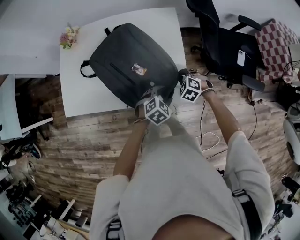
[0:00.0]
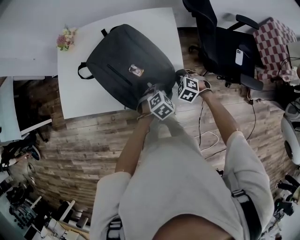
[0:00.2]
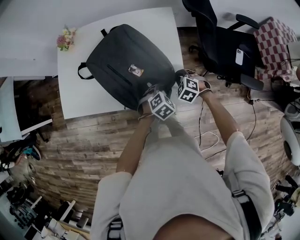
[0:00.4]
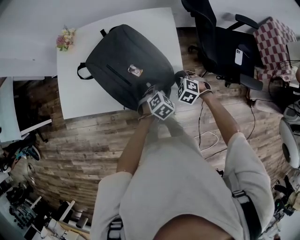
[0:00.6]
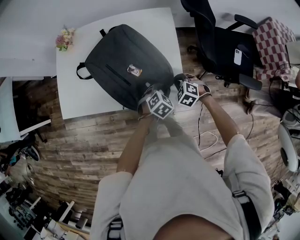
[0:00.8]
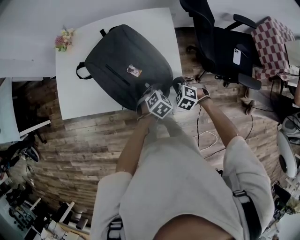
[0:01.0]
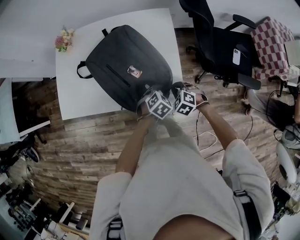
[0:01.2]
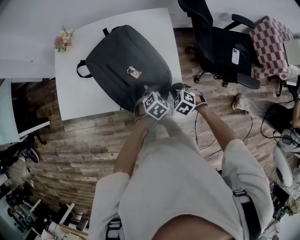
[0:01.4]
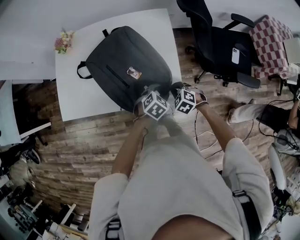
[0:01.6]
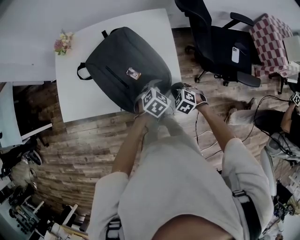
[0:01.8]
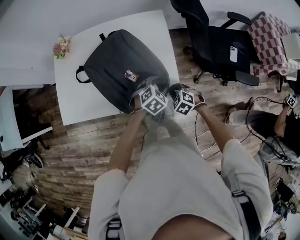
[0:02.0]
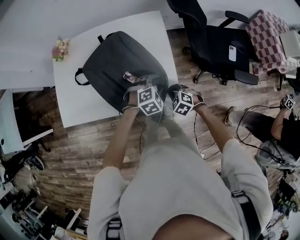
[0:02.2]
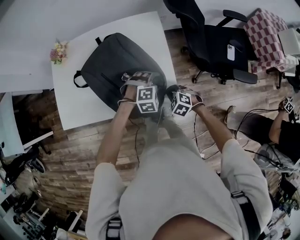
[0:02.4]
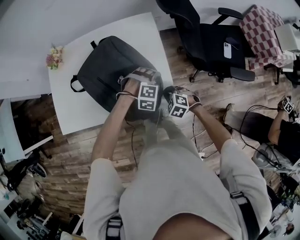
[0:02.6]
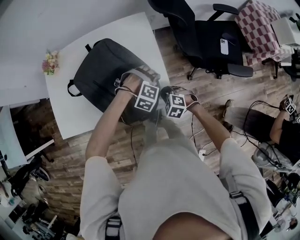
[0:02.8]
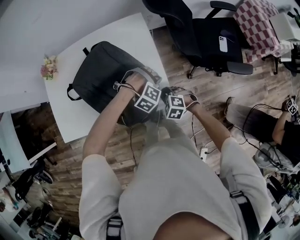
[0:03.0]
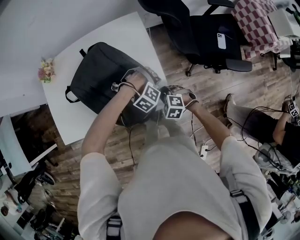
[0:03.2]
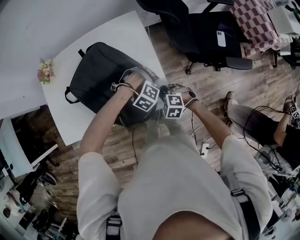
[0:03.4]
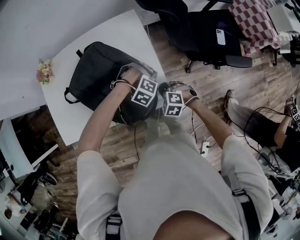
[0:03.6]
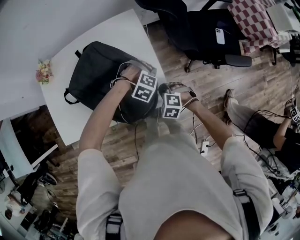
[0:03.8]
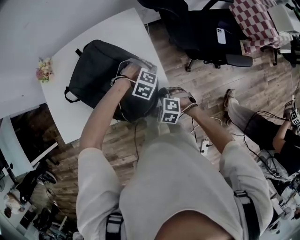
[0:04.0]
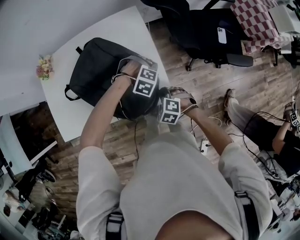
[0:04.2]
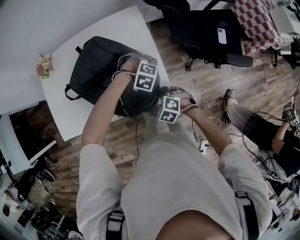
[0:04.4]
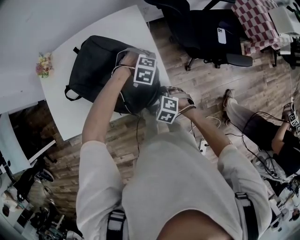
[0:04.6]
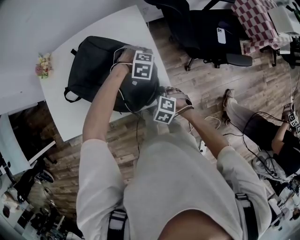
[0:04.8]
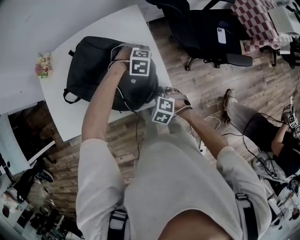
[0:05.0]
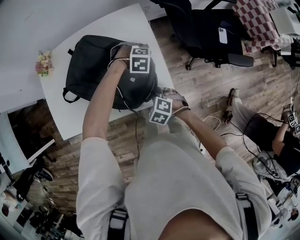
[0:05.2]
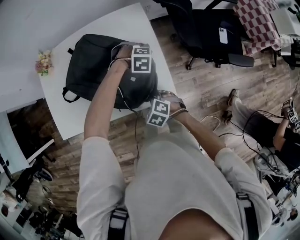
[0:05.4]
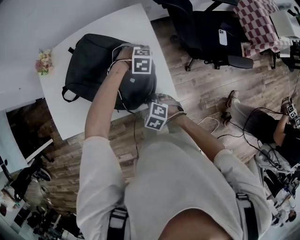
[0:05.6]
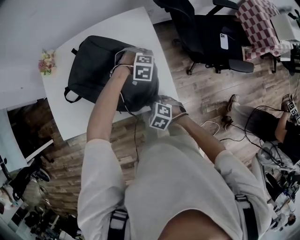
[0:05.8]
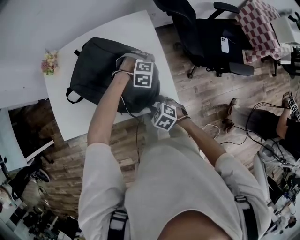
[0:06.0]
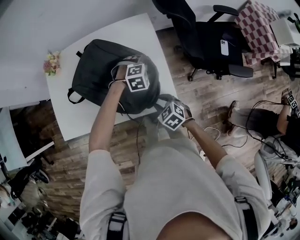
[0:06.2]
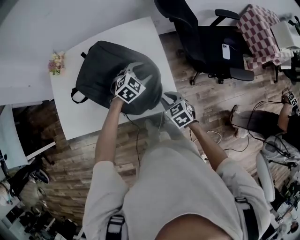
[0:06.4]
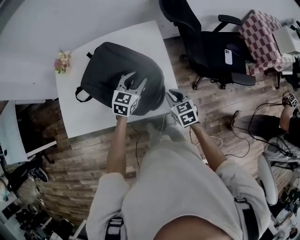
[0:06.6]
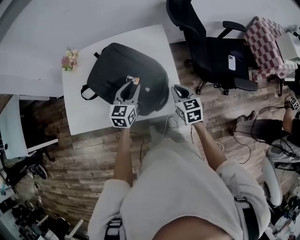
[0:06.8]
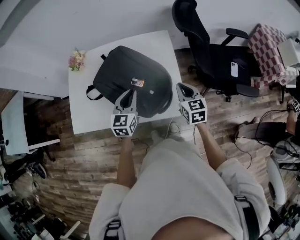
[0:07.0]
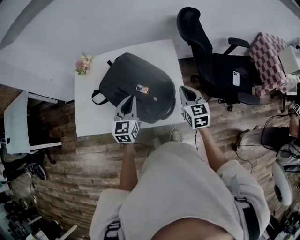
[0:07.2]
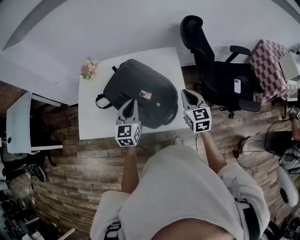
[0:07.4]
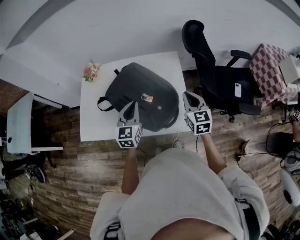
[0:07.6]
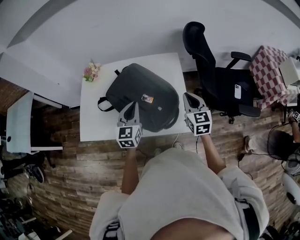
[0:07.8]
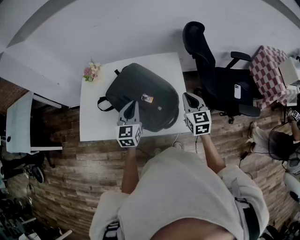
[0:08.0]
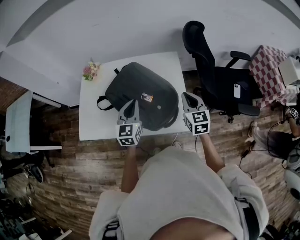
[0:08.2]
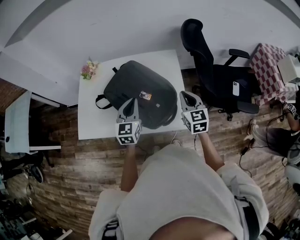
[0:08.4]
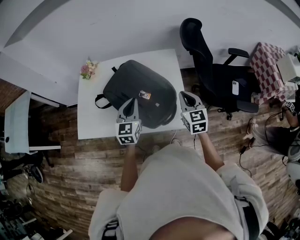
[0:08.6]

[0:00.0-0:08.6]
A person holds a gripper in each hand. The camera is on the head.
0:00.0 to 0:01.4: The right gripper goes about 5 cm backward; the left gripper closes up.
0:01.4 to 0:02.8: The left gripper travels forward by roughly 5 cm, twists approximately 80 degrees clockwise, seen from behind, and opens its fingers.
0:02.8 to 0:04.4: The grippers move only a little.
0:04.4 to 0:05.8: The right gripper ends up roughly 10 cm from where it was, while the left gripper moves roughly 5 cm.
0:05.8 to 0:07.2: The right gripper travels upward by some 20 cm, angles its fingers upward, by roughly 40 degrees, and opens and closes again. The left gripper moves about 30 cm, tips its fingers upward by roughly 60 degrees, and closes its fingers.
0:07.2 to 0:08.6: The grippers make only small movements.

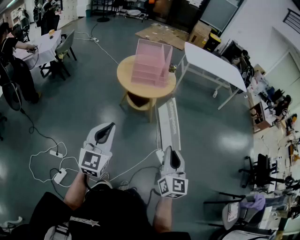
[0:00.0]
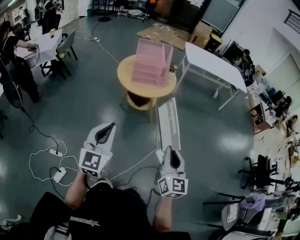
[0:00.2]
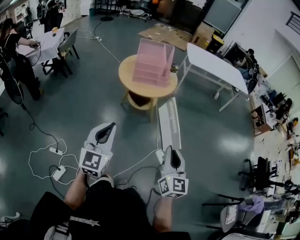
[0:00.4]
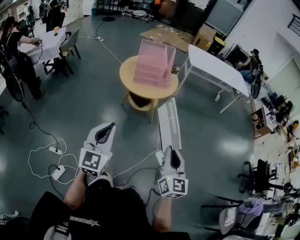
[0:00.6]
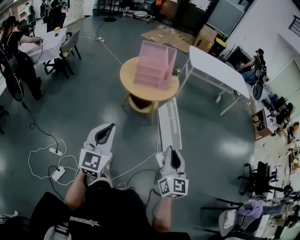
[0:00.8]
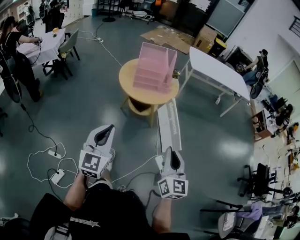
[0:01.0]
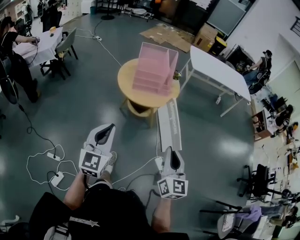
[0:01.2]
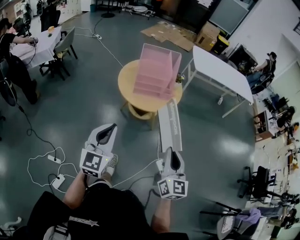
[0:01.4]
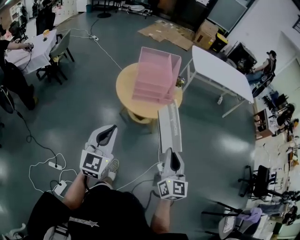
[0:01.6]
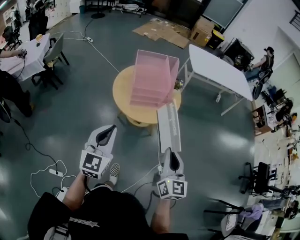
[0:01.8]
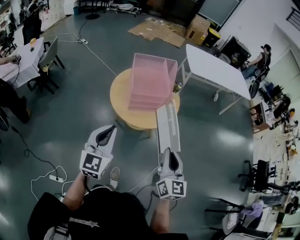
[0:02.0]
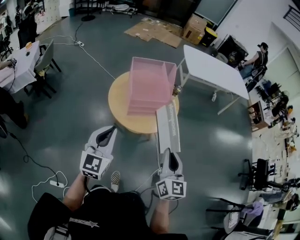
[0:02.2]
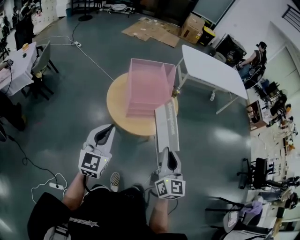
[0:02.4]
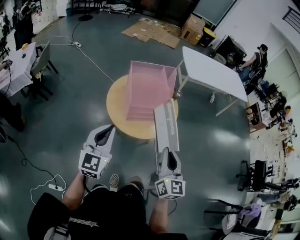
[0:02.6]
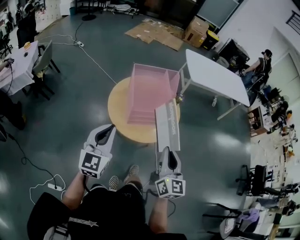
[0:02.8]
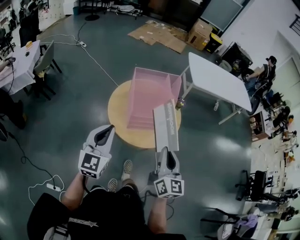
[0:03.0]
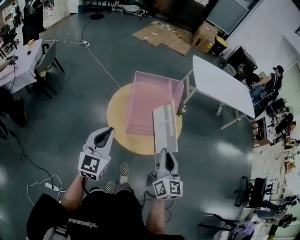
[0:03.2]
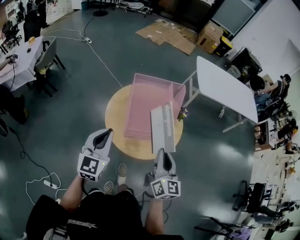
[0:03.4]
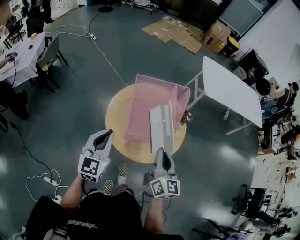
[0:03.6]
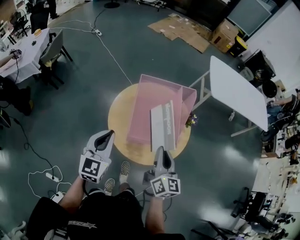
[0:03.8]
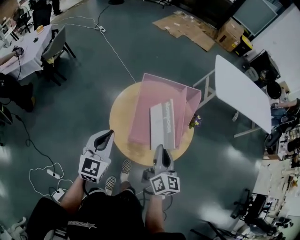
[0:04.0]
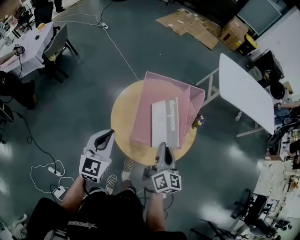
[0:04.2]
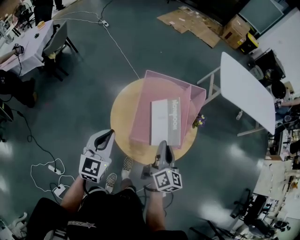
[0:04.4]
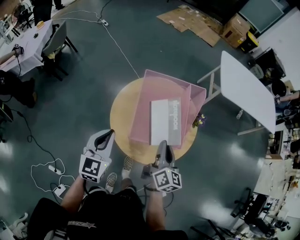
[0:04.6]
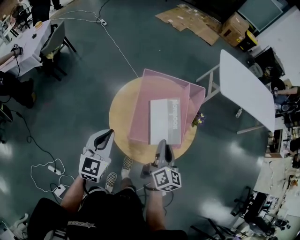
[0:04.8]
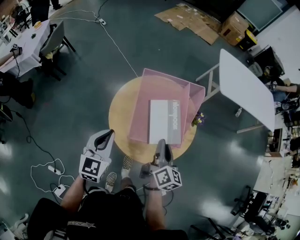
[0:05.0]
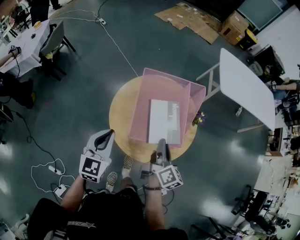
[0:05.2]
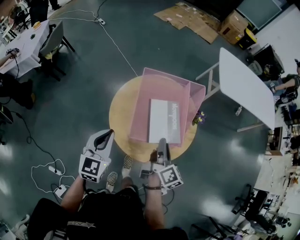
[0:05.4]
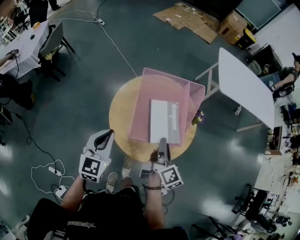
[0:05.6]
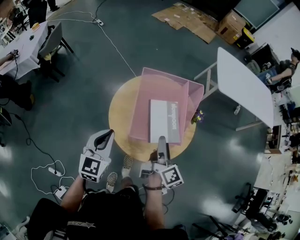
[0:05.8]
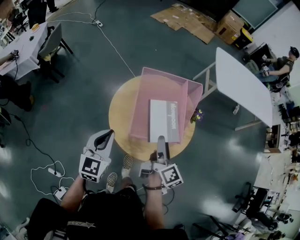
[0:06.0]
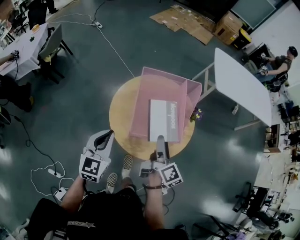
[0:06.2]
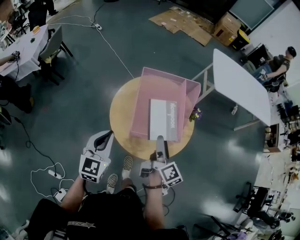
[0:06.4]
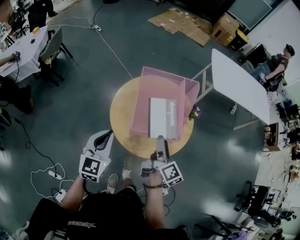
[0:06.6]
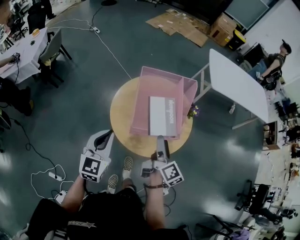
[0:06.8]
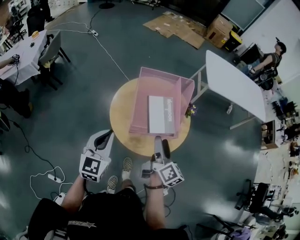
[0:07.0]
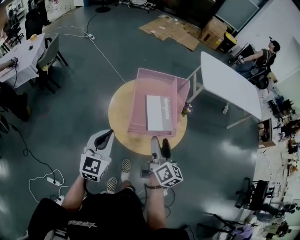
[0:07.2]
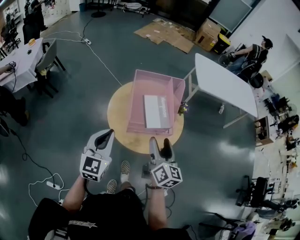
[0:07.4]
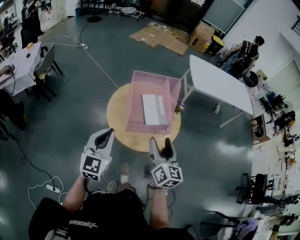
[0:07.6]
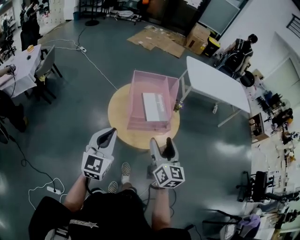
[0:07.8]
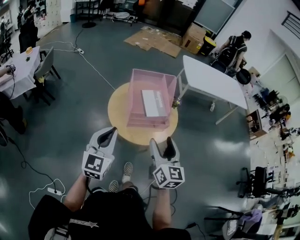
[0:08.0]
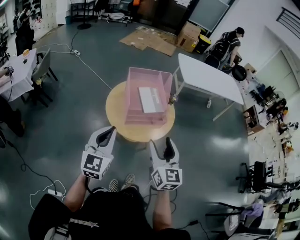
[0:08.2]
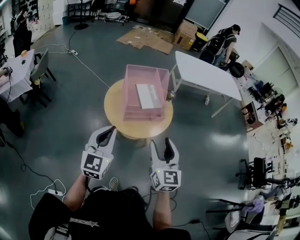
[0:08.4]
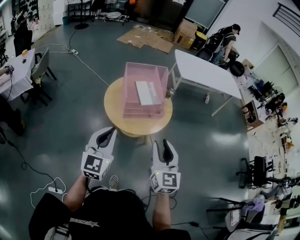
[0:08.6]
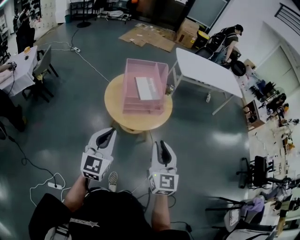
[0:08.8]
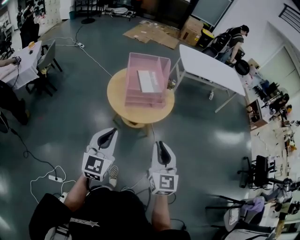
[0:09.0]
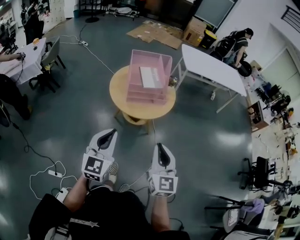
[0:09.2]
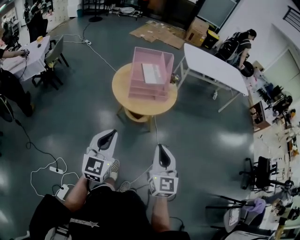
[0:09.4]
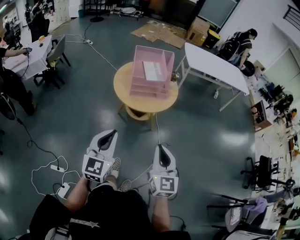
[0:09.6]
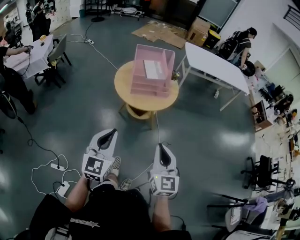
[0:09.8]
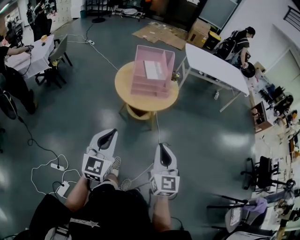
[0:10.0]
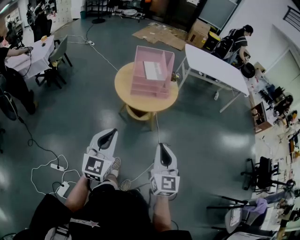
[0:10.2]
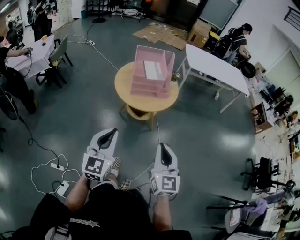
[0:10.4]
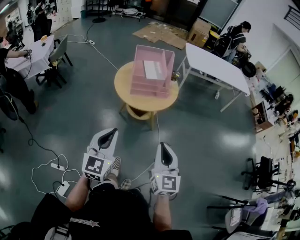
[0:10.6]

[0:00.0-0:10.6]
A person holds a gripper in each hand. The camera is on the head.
0:00.0 to 0:01.6: The two grippers go about 20 cm forward.
0:01.6 to 0:03.0: The grippers both shift forward by approximately 20 cm.
0:03.0 to 0:04.6: Both grippers travel together forward and downward, about 20 cm. The right gripper rotates approximately 20 degrees.
0:04.6 to 0:06.0: The right gripper changes its angle by approximately 30 degrees, and opens up.
0:06.0 to 0:07.6: Both grippers travel together backward and upward, about 15 cm. The right gripper rotates around the line of its fingers by approximately 40 degrees, counterclockwise from behind.
0:07.6 to 0:09.0: Both grippers travel together backward, about 20 cm. The right gripper rotates some 20 degrees, and closes its fingers.
0:09.0 to 0:10.6: The two grippers go some 10 cm backward.

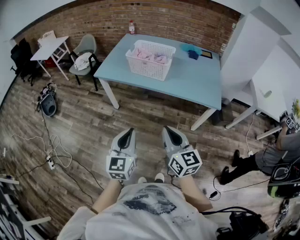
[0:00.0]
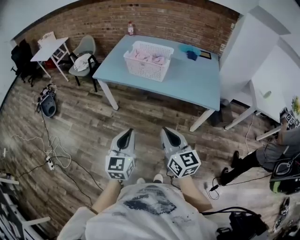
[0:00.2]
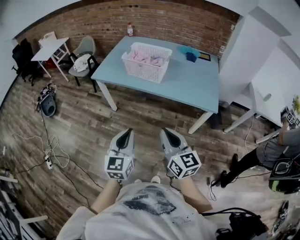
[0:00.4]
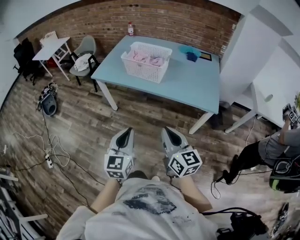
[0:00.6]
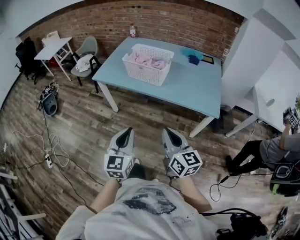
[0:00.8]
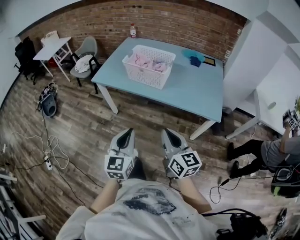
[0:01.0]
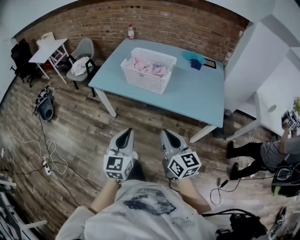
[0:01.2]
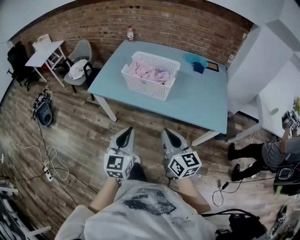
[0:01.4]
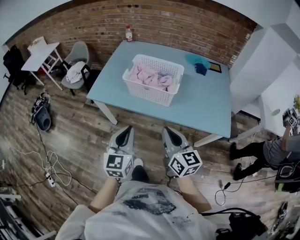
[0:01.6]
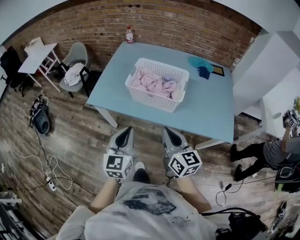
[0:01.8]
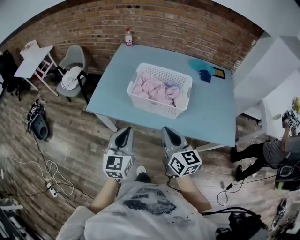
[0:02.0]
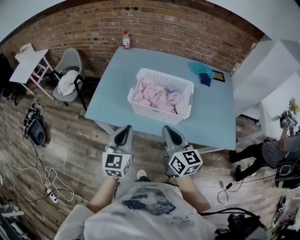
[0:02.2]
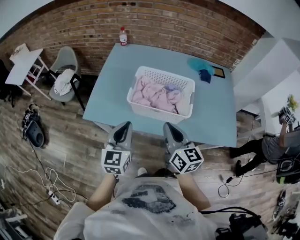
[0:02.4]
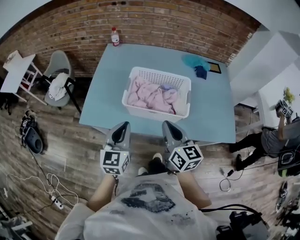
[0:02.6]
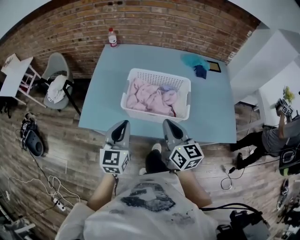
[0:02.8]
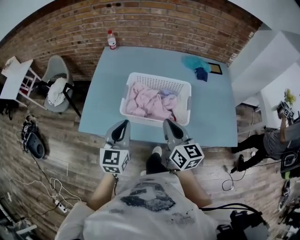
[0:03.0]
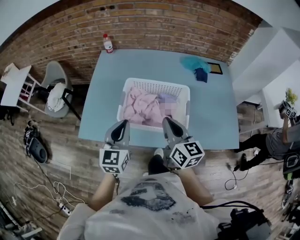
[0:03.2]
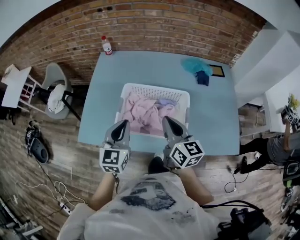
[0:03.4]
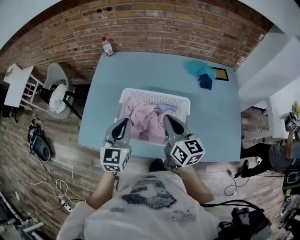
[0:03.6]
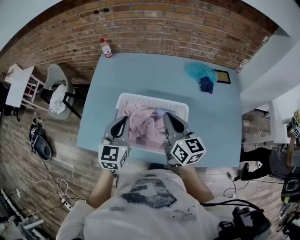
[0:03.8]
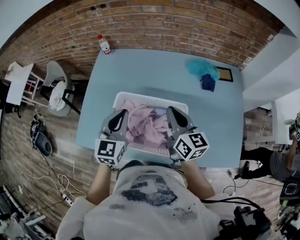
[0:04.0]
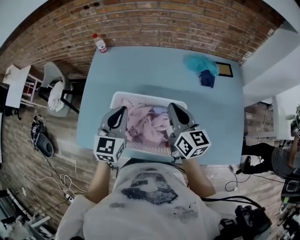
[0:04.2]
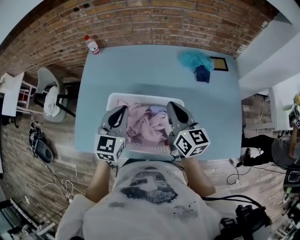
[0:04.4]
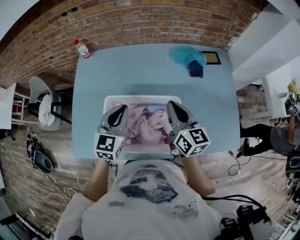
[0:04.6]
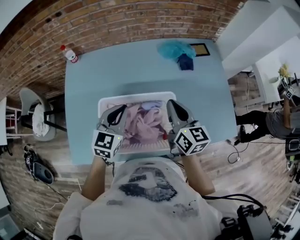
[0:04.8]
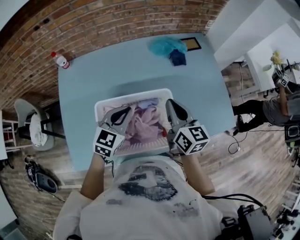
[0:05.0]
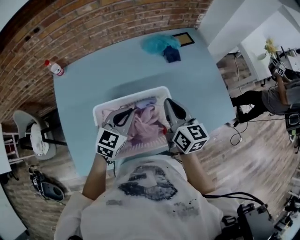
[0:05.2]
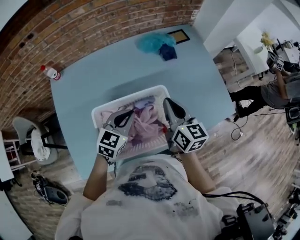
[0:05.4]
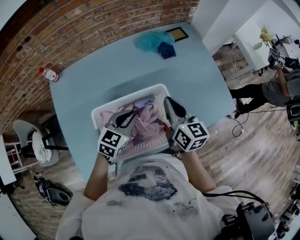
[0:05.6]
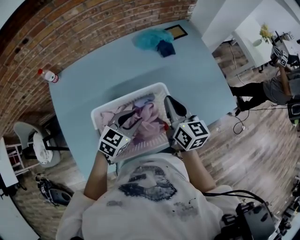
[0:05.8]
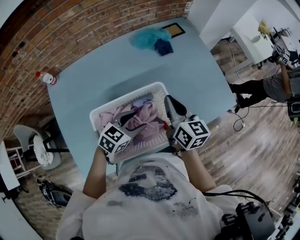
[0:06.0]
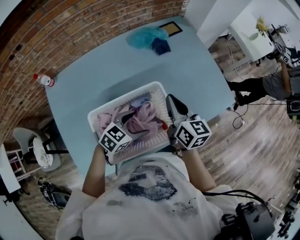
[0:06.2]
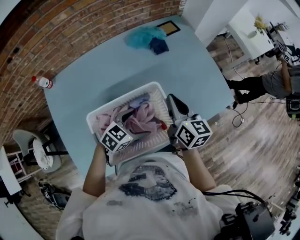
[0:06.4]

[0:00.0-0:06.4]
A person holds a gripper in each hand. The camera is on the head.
0:00.0 to 0:01.6: The two grippers go roughly 30 cm forward.
0:01.6 to 0:03.2: Both grippers travel together forward, approximately 30 cm.
0:03.2 to 0:04.8: Both grippers travel together forward and to the right, approximately 20 cm. The left gripper changes its angle by approximately 30 degrees.
0:04.8 to 0:06.4: The right gripper moves roughly 5 cm, while the left gripper ends up approximately 15 cm from where it was, rotates approximately 50 degrees, and opens.
